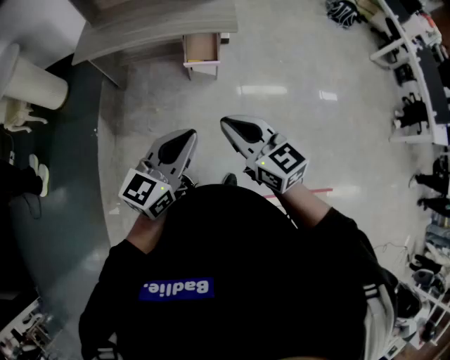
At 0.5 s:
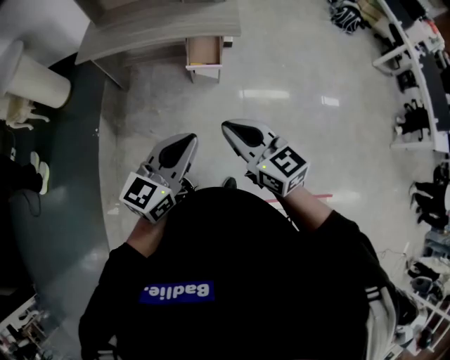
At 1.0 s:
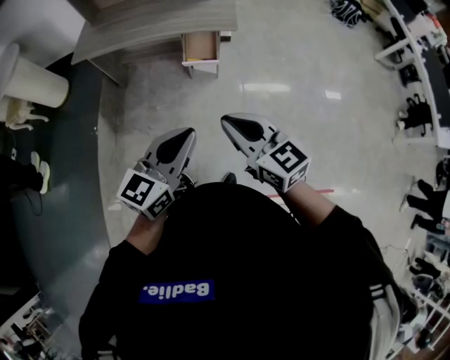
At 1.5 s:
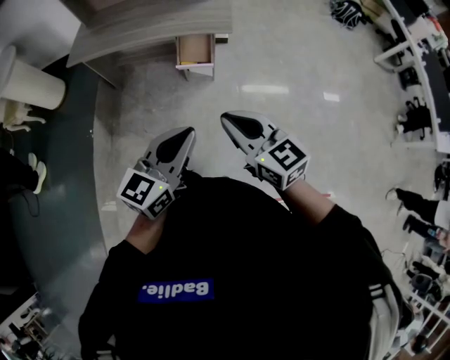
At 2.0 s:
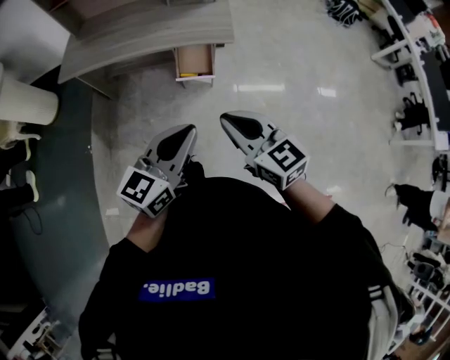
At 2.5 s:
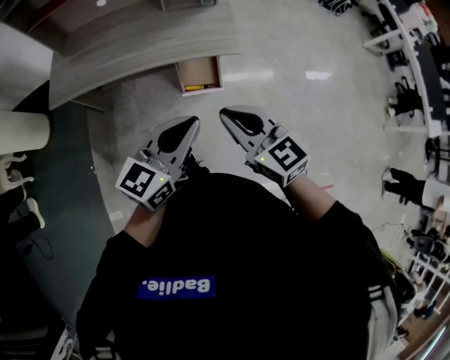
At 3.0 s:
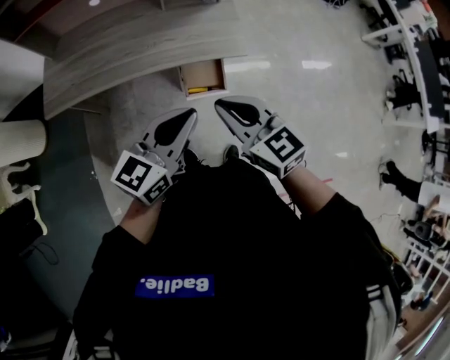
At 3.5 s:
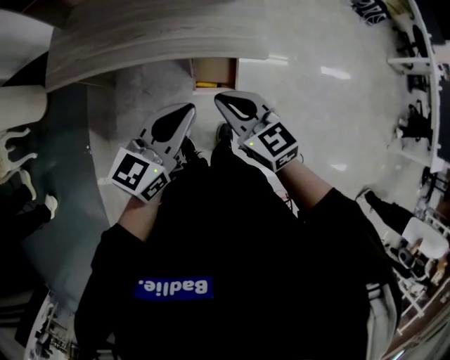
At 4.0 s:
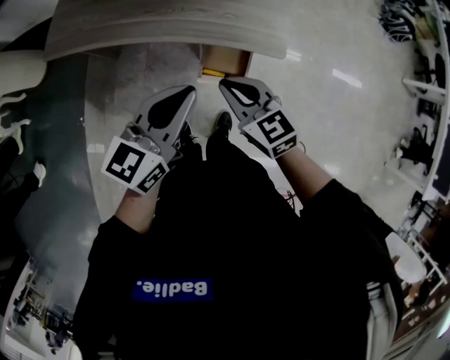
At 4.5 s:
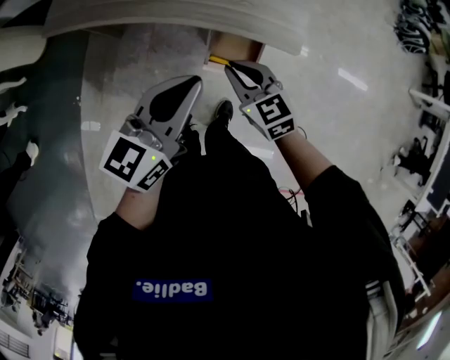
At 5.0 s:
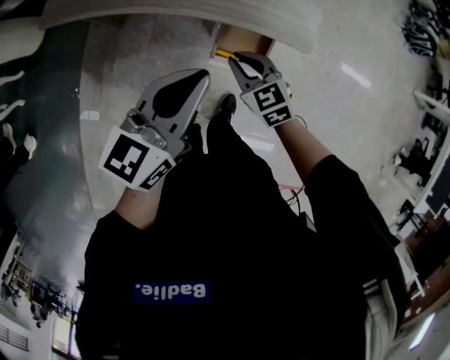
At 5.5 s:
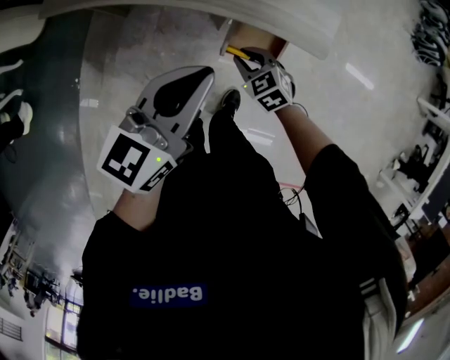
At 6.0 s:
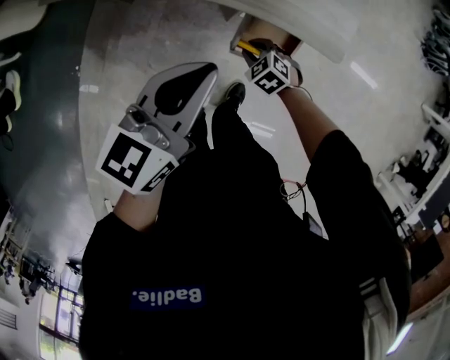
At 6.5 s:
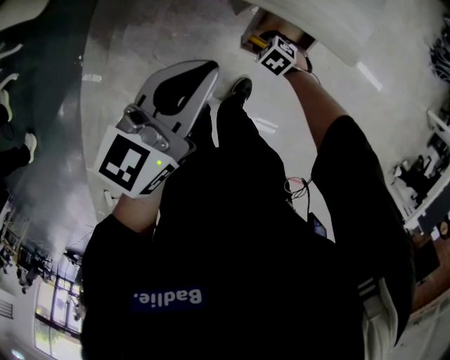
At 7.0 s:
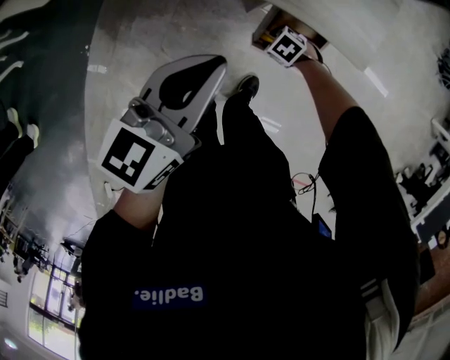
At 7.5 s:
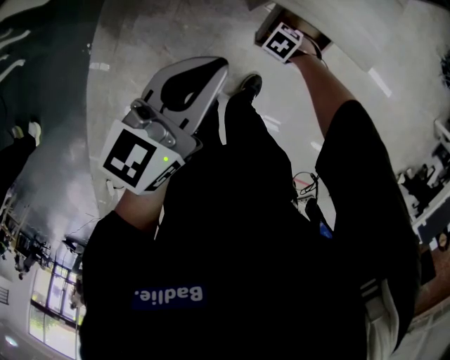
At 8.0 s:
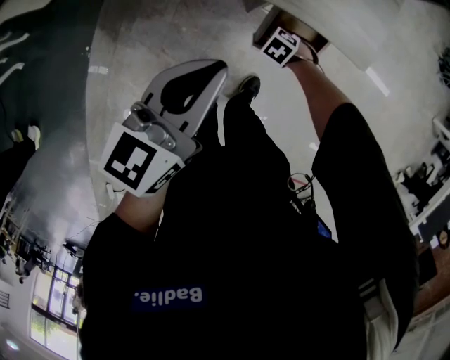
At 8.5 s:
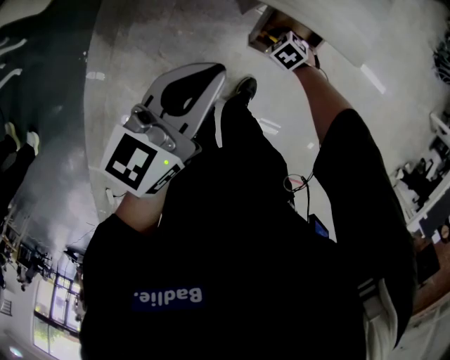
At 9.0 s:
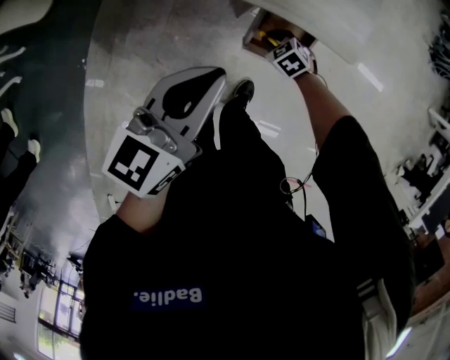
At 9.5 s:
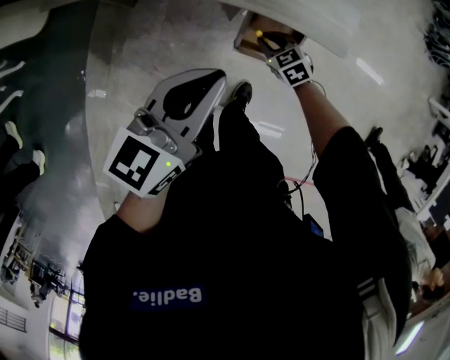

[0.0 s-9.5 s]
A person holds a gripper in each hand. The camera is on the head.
0.0 to 2.0 s: Both grippers travel together forward, some 15 cm.
2.0 to 4.0 s: The left gripper moves forward, about 30 cm; the right gripper is displaced forward and downward by some 30 cm.
4.0 to 5.5 s: The right gripper moves downward, some 25 cm, and rotates roughly 30 degrees. The left gripper goes some 5 cm downward.
5.5 to 7.5 s: The left gripper moves some 5 cm. The right gripper heads downward, covering approximately 20 cm, and angles its fingers downward, by approximately 30 degrees.
7.5 to 9.5 s: The right gripper moves upward, some 10 cm, and tilts its fingers approximately 30 degrees upward.

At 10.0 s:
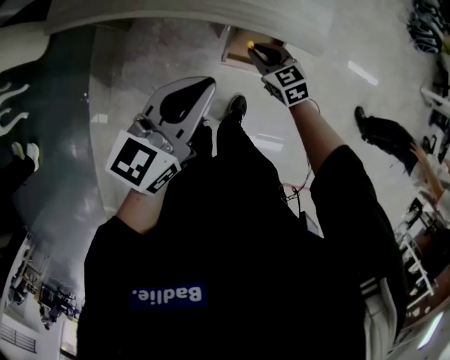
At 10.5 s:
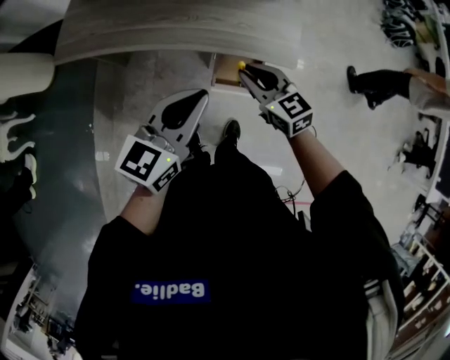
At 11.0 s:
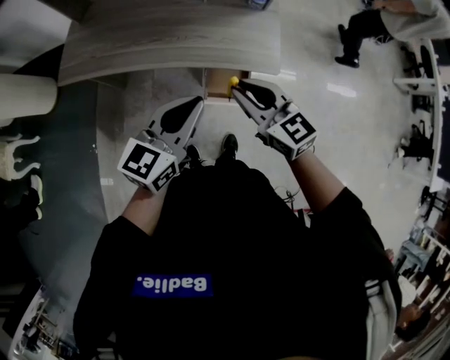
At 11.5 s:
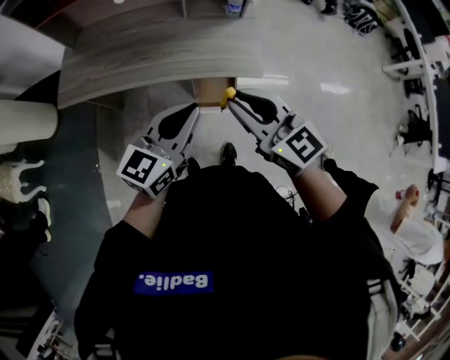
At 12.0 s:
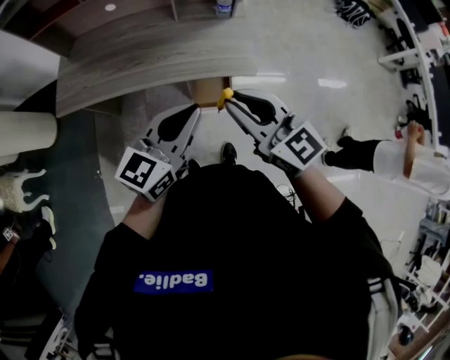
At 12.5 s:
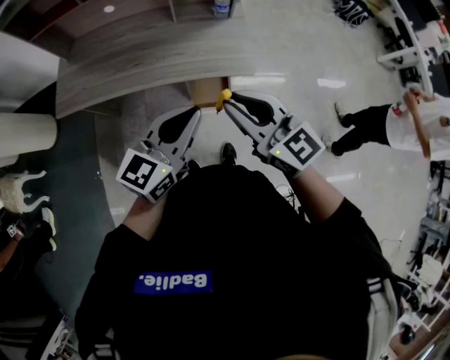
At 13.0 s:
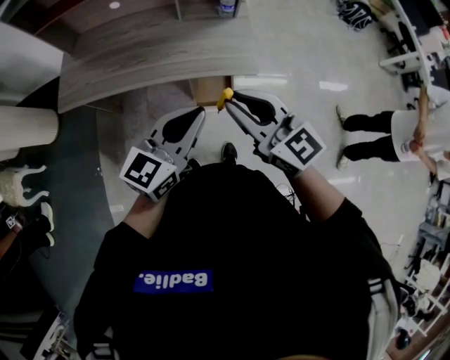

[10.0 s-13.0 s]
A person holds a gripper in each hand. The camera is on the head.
10.0 to 11.5 s: The left gripper is displaced upward, backward and to the right by roughly 15 cm, while the right gripper travels upward by about 35 cm, and tips its fingers upward by about 30 degrees.
11.5 to 13.0 s: The grippers move only a little.

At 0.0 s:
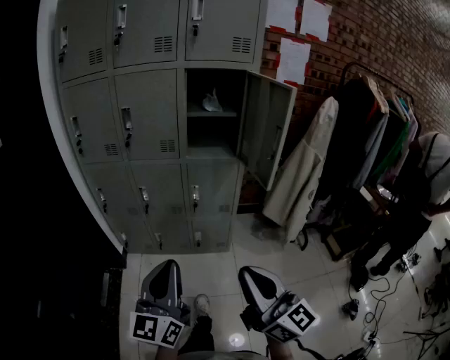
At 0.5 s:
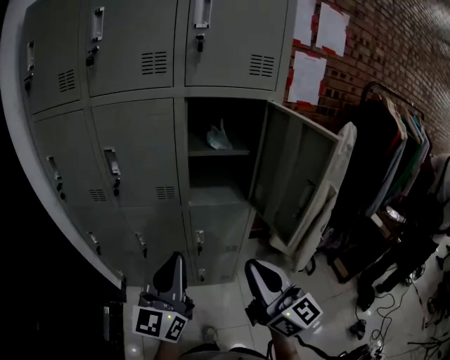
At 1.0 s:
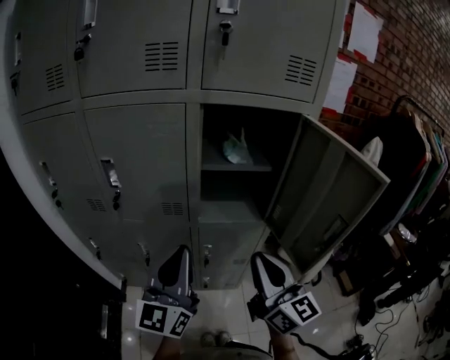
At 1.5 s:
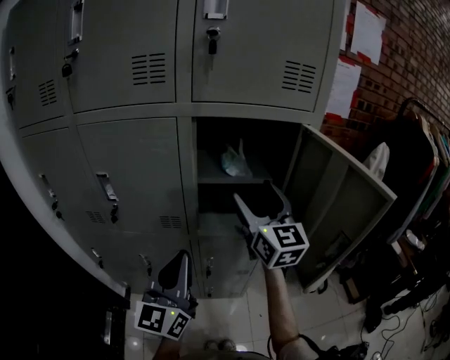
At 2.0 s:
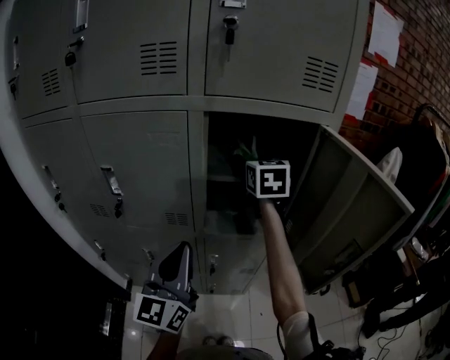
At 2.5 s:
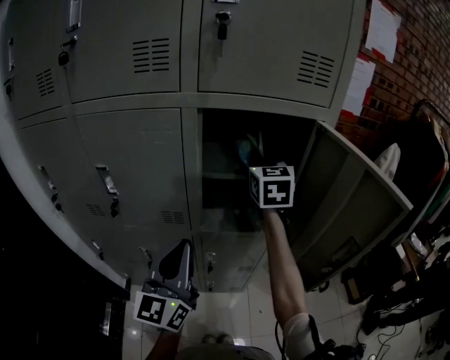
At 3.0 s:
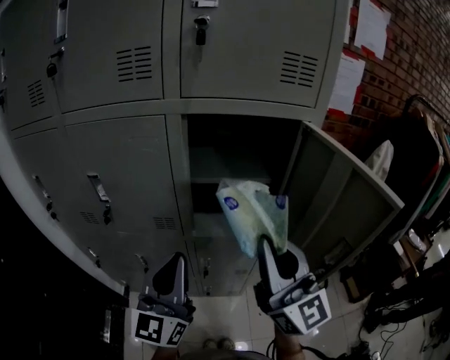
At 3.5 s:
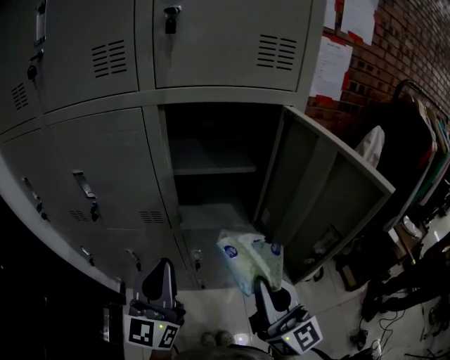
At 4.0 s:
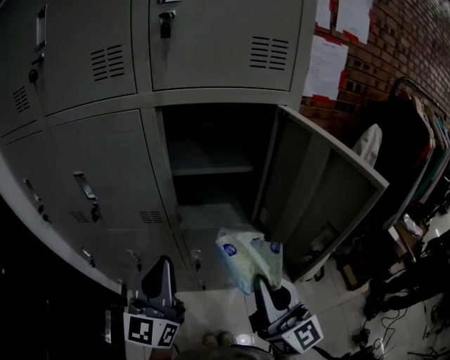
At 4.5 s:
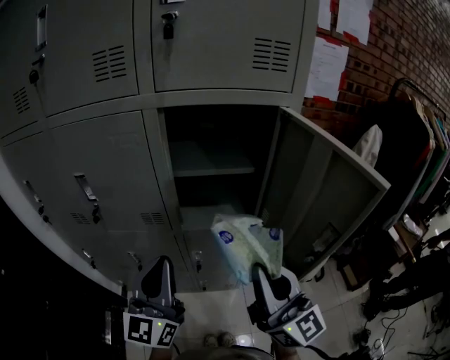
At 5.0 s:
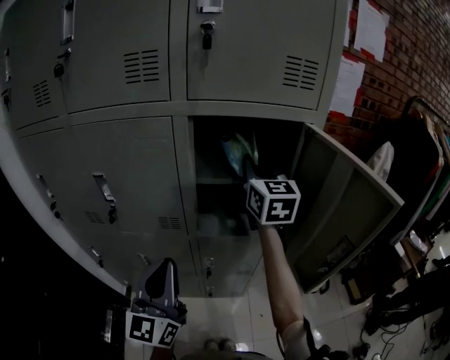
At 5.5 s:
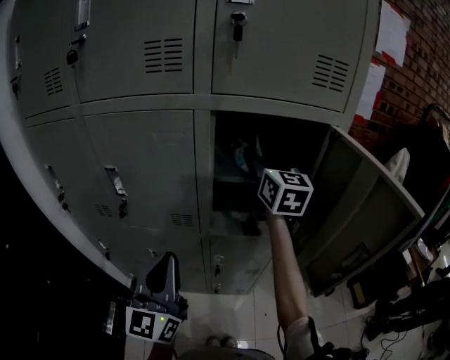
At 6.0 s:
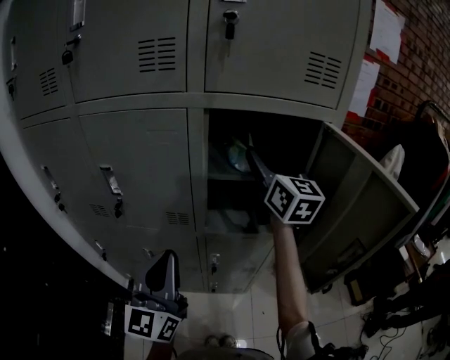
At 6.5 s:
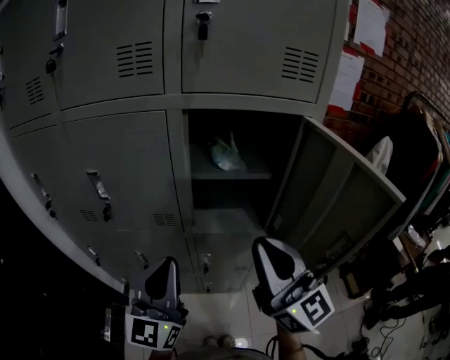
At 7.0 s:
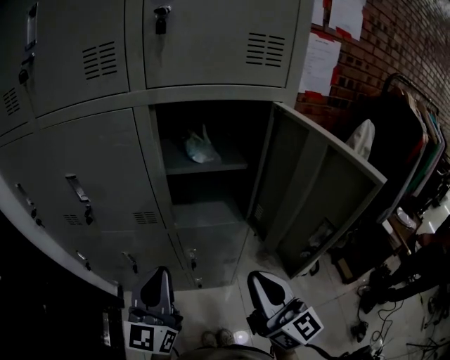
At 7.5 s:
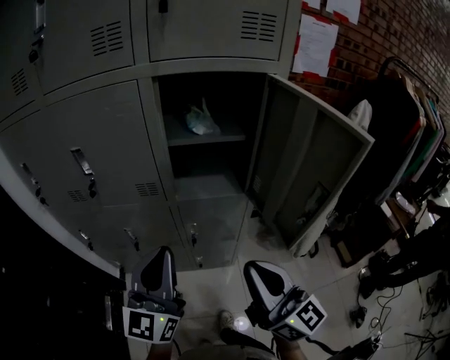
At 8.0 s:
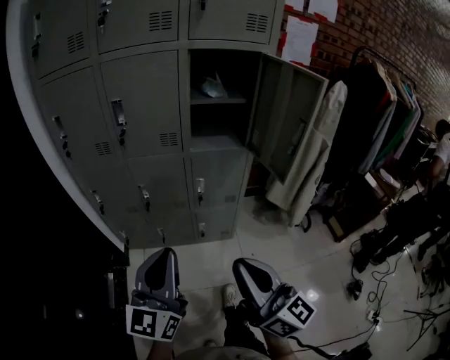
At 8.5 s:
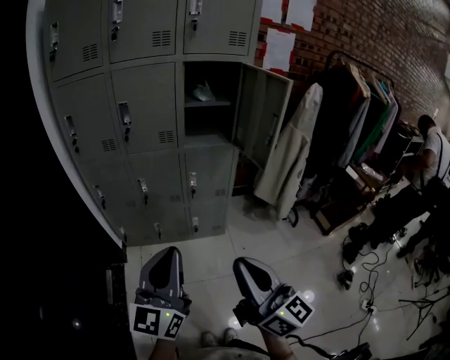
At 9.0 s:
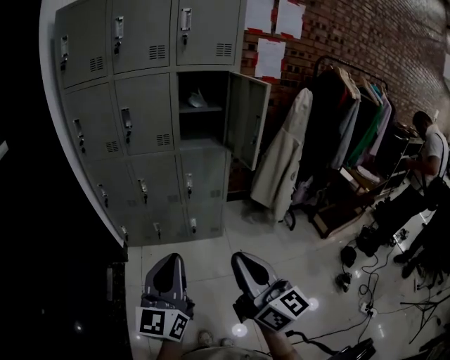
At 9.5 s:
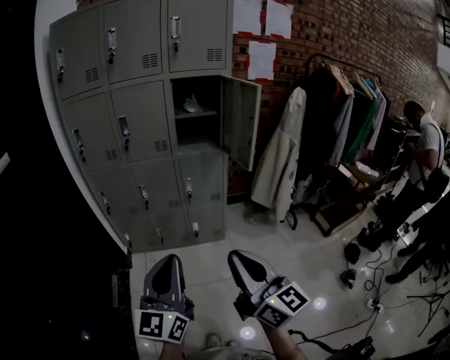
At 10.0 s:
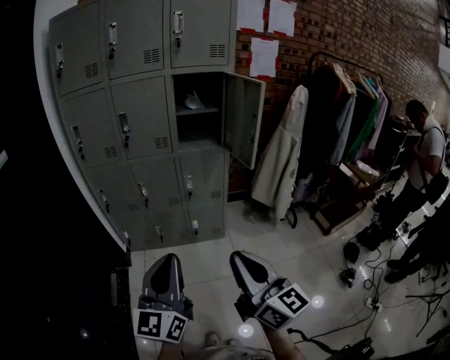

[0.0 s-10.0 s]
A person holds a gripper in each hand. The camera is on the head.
0.0 to 2.0 s: The two grippers travel together, forward, some 60 cm. The right gripper angles its fingers downward, by about 30 degrees, and opens up.
2.0 to 4.0 s: The right gripper moves backward, some 35 cm, points its fingers about 40 degrees further upward, and closes.
4.0 to 6.0 s: The left gripper travels to the left by about 5 cm. The right gripper travels forward by some 30 cm, and opens its fingers.
6.0 to 8.0 s: The right gripper moves backward, roughly 60 cm, turns by roughly 20 degrees, and closes up; the left gripper shifts about 30 cm backward.
8.0 to 10.0 s: The two grippers go roughly 20 cm backward.

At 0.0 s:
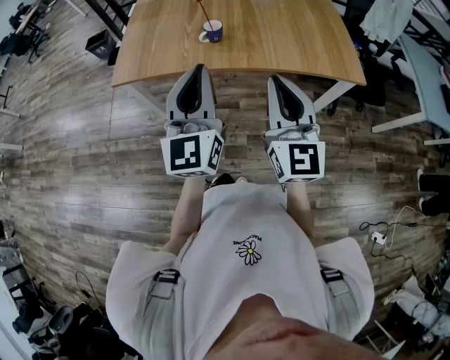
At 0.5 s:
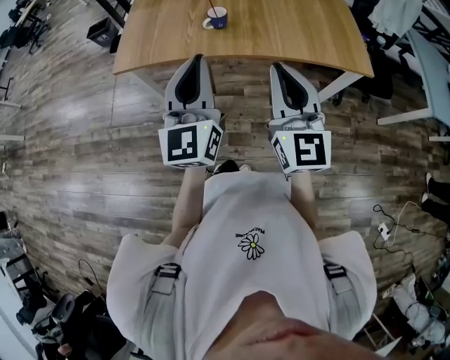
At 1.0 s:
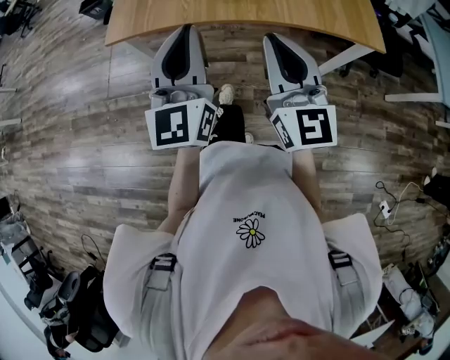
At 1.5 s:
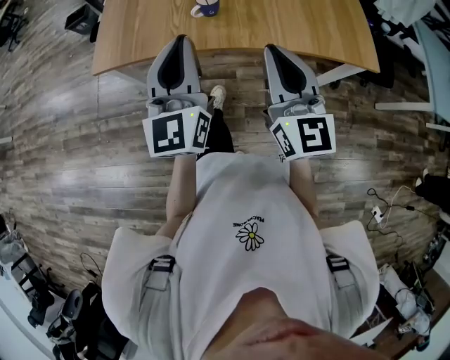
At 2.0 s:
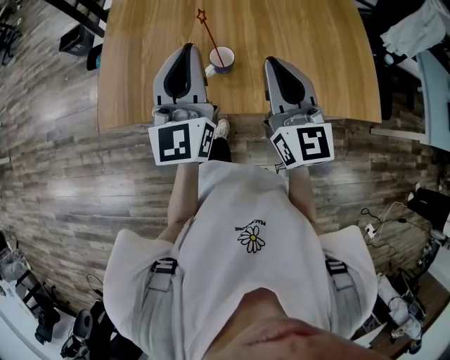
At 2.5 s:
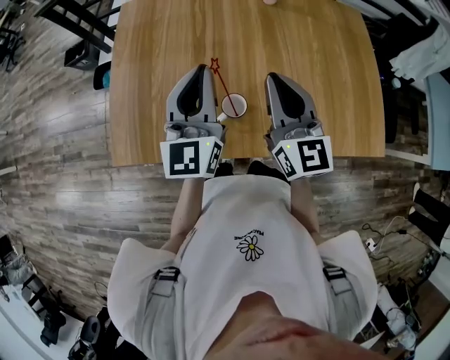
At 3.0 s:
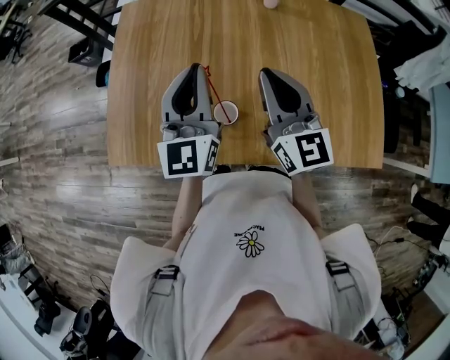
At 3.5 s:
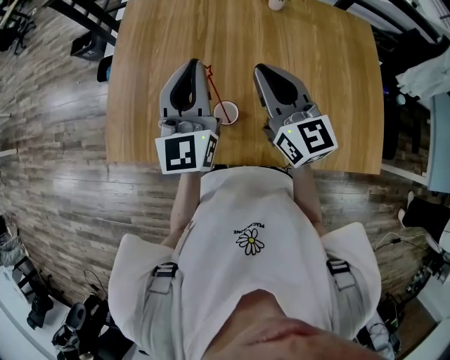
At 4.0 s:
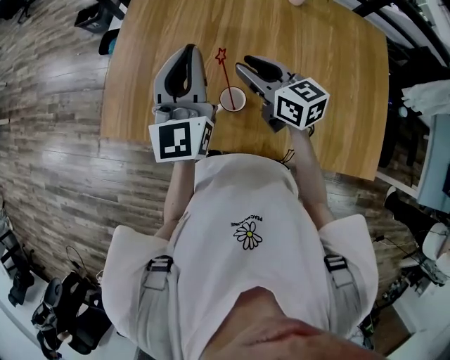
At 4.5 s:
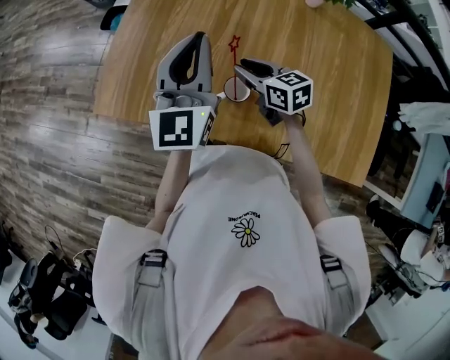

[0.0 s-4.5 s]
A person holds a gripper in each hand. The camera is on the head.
0.0 to 2.0 s: The grippers both shift forward by approximately 30 cm.
2.0 to 4.5 s: The left gripper moves some 15 cm. Meanwhile the right gripper heads downward, covering some 20 cm, angles its fingers downward, by approximately 30 degrees, and opens its fingers.
